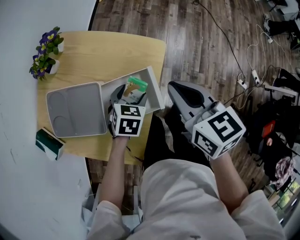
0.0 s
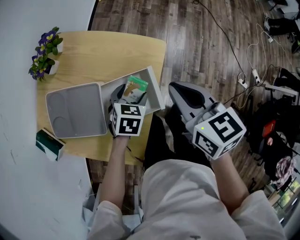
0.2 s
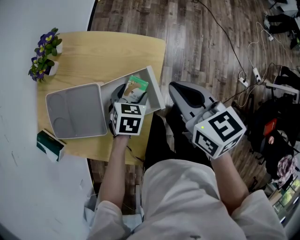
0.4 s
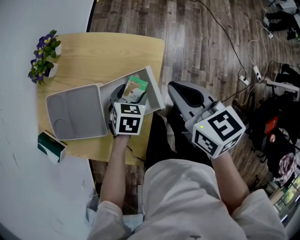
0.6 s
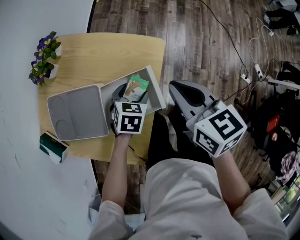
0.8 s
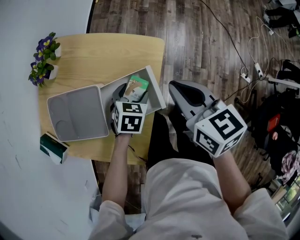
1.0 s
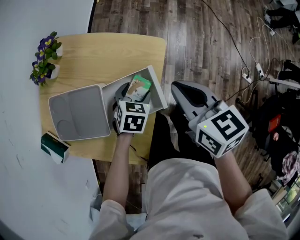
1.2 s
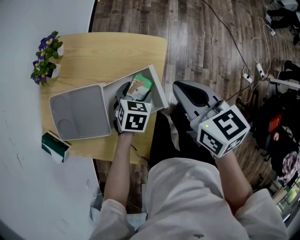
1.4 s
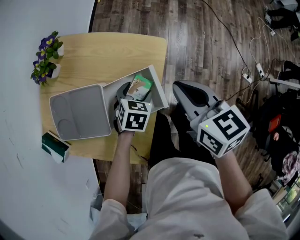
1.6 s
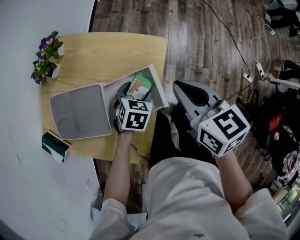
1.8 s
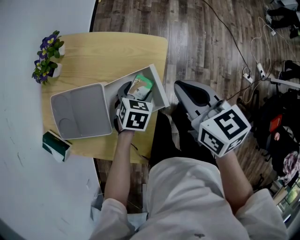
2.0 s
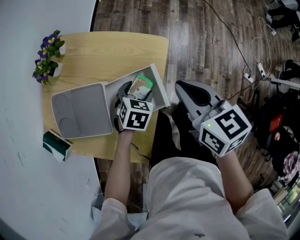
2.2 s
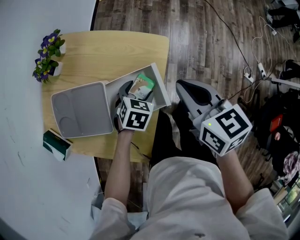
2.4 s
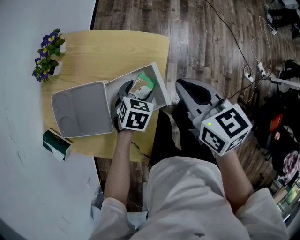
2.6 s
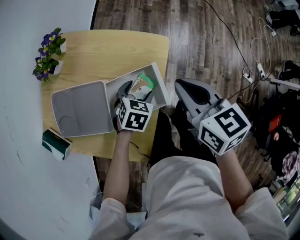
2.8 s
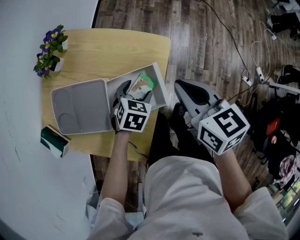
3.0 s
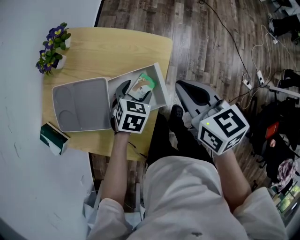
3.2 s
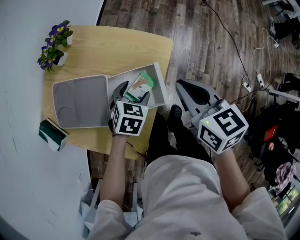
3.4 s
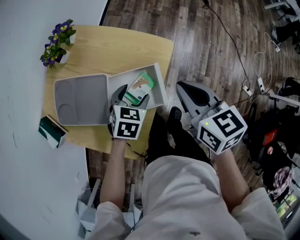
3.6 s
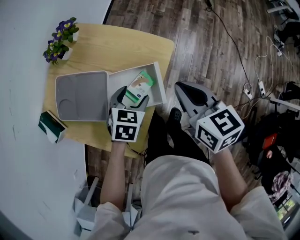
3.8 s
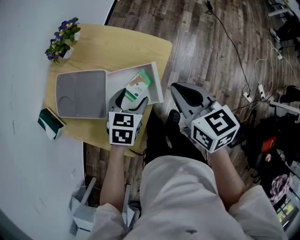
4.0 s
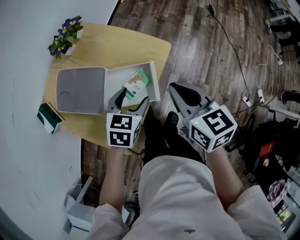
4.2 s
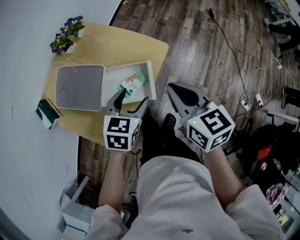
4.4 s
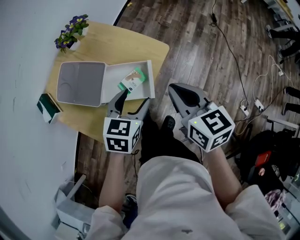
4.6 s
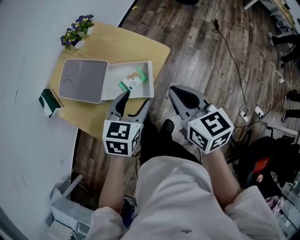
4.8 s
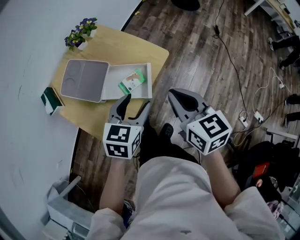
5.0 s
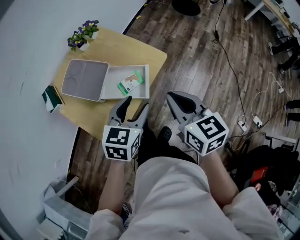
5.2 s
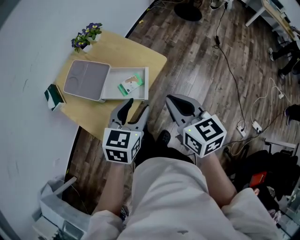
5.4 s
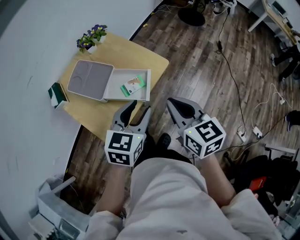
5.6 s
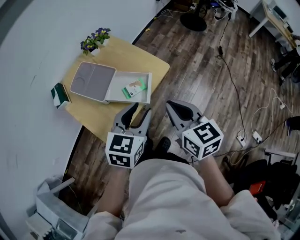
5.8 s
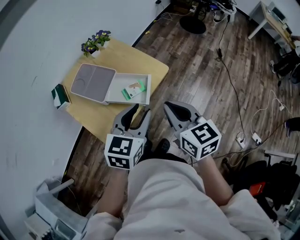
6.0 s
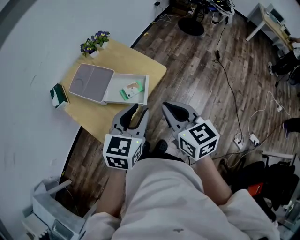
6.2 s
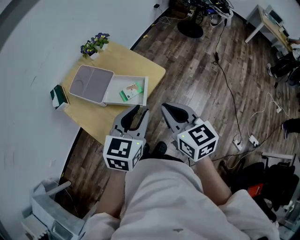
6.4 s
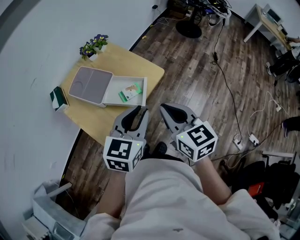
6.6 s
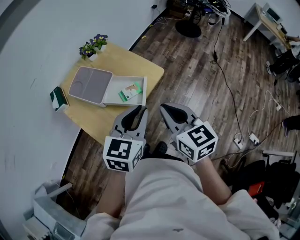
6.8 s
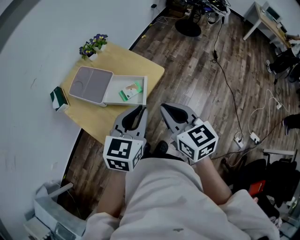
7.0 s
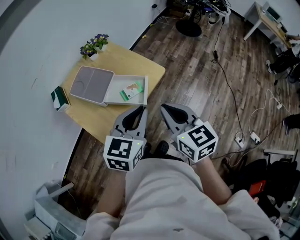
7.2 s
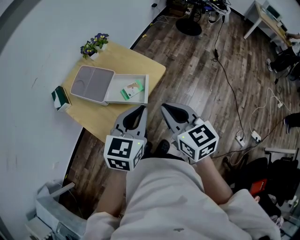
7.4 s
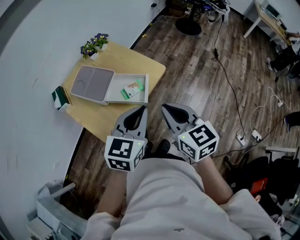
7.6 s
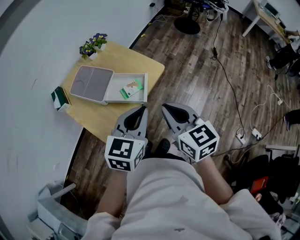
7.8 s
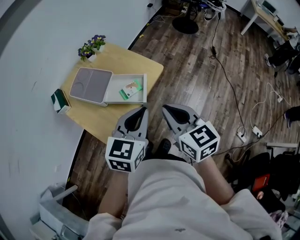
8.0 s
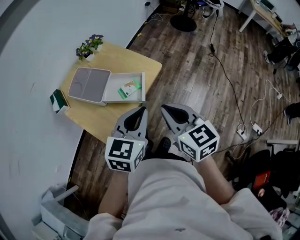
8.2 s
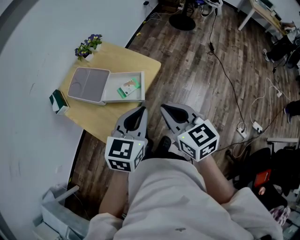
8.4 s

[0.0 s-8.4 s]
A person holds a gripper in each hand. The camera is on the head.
0.0 to 2.8 s: There are only small adjustments of the grippers.
2.8 to 4.2 s: The left gripper shifts roughly 10 cm upward, and swivels about 20 degrees.
4.2 to 5.6 s: The left gripper moves upward, backward and to the right, approximately 20 cm, rotates roughly 20 degrees, and closes up. Meanwhile the right gripper heads backward and upward, covering some 10 cm.
5.6 to 7.0 s: The left gripper travels upward by about 5 cm, and closes up.
7.0 to 8.4 s: The grippers make only small movements.

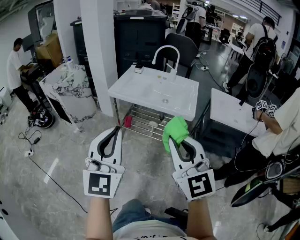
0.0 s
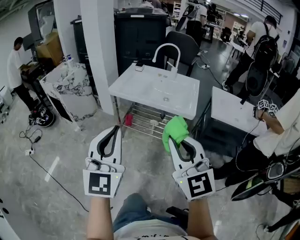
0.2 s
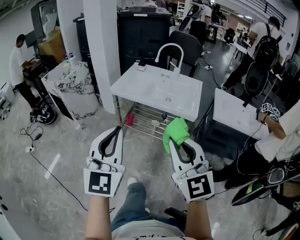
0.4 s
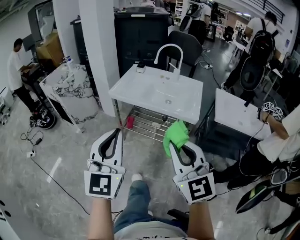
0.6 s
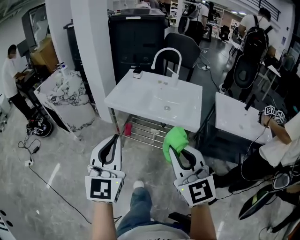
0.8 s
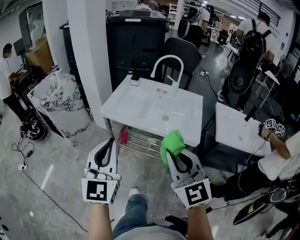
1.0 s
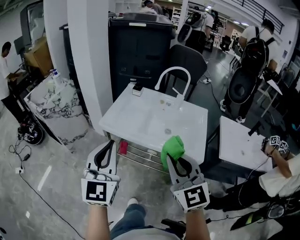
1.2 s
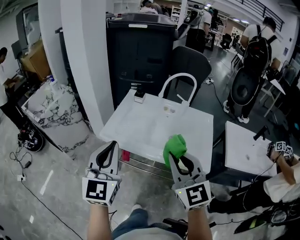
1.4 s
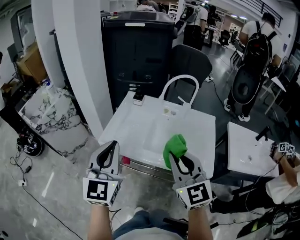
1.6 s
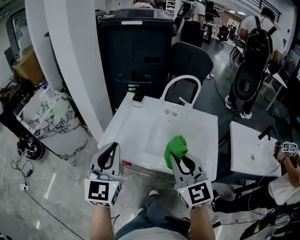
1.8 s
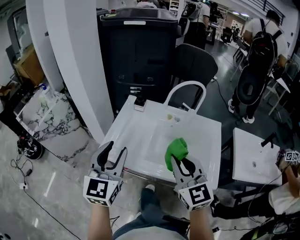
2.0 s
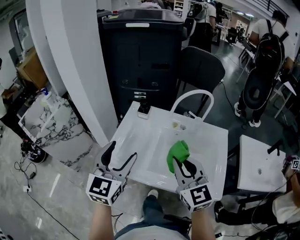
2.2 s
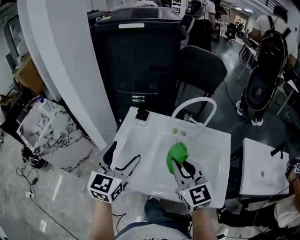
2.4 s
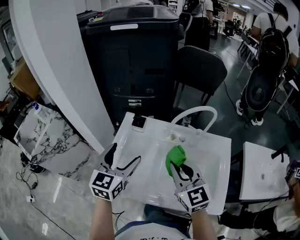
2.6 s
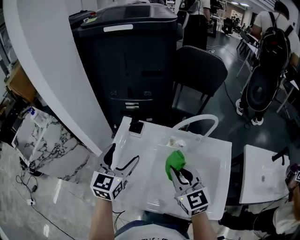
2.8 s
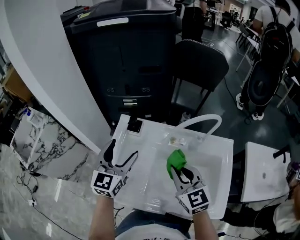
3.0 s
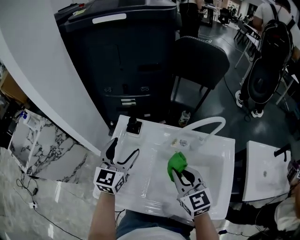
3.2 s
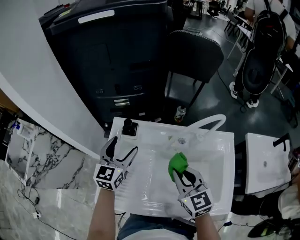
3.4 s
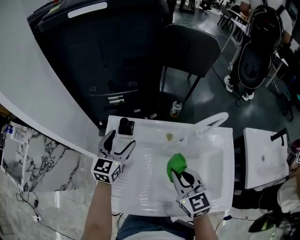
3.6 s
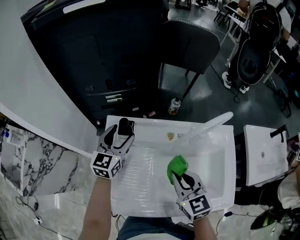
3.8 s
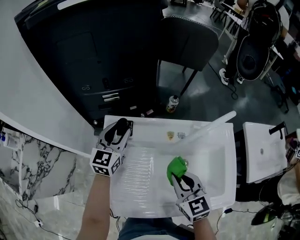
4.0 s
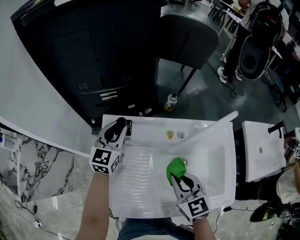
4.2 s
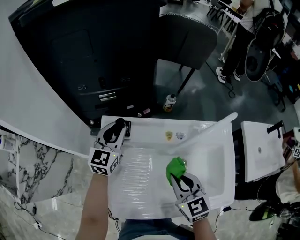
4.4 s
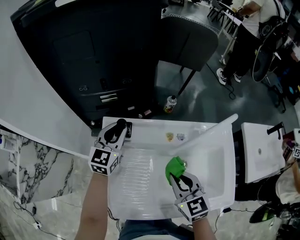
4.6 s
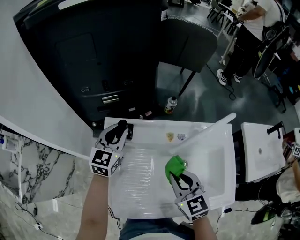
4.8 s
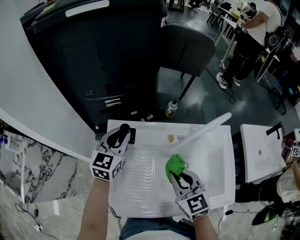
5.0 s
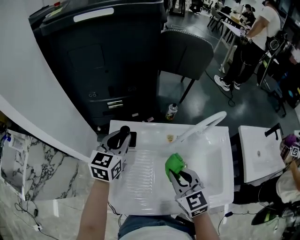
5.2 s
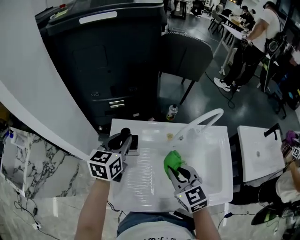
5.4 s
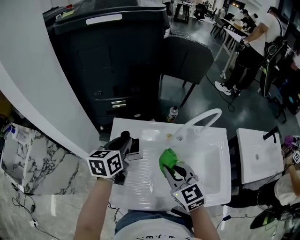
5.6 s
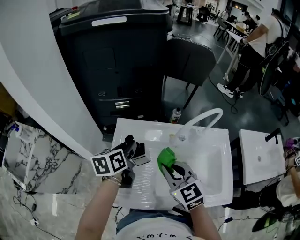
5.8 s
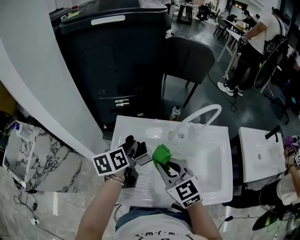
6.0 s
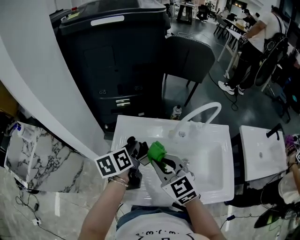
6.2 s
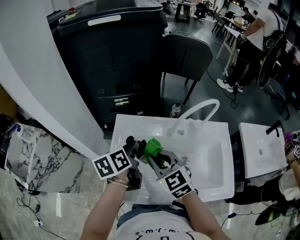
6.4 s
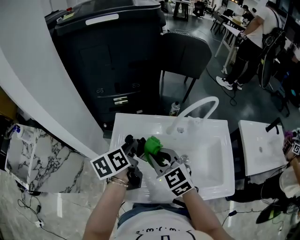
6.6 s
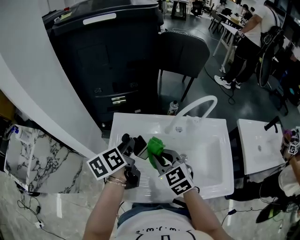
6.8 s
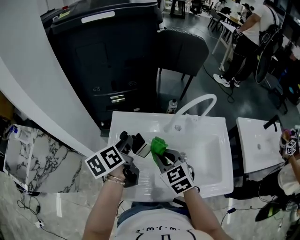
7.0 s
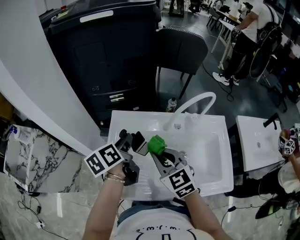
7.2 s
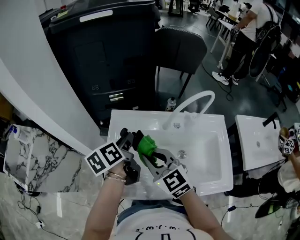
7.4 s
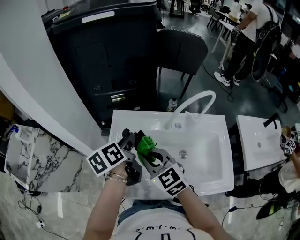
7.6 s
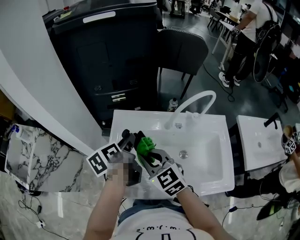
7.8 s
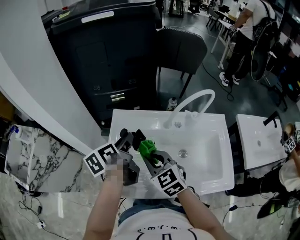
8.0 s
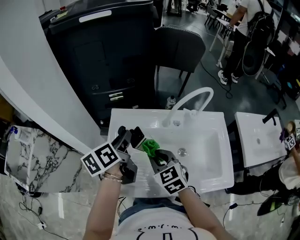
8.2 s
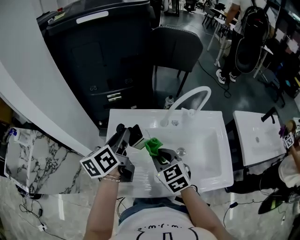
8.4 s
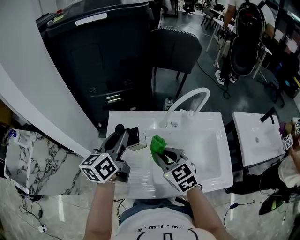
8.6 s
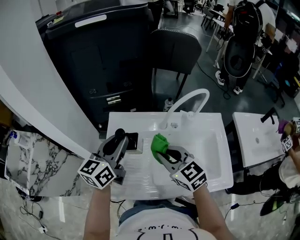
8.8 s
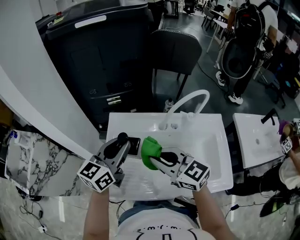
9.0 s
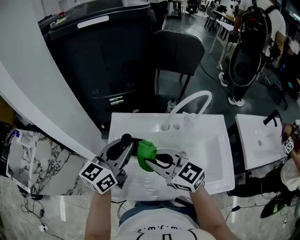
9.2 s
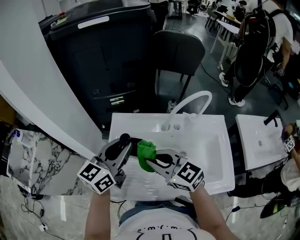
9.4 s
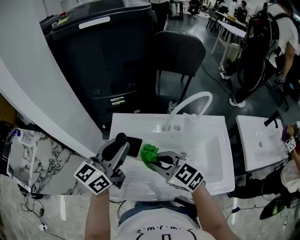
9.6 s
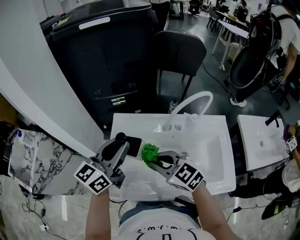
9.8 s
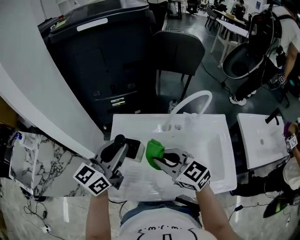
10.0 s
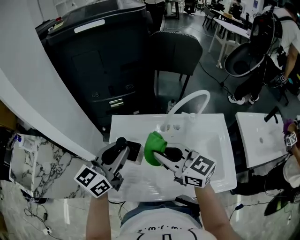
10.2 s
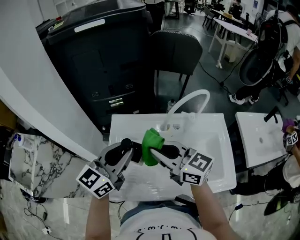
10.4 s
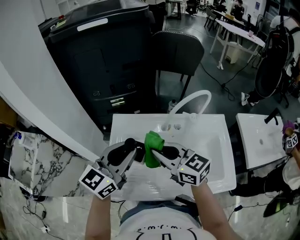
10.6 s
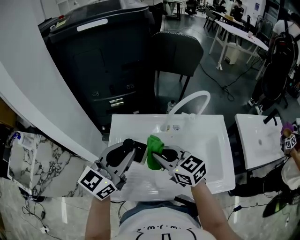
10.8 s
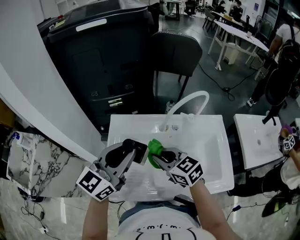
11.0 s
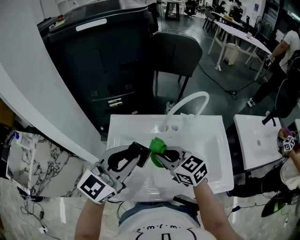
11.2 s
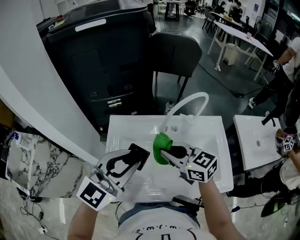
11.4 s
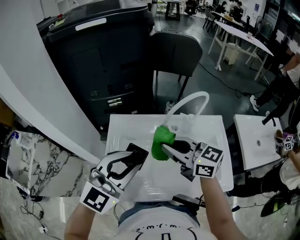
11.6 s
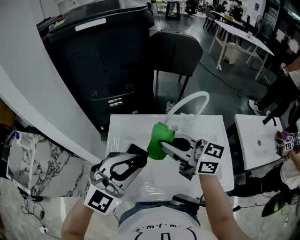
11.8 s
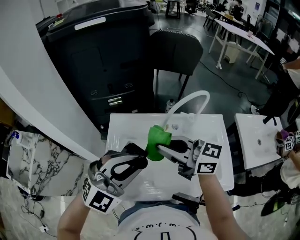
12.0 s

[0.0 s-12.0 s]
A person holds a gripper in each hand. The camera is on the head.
0.0 to 1.6 s: The two grippers travel together, forward, approximately 40 cm.
1.6 to 3.0 s: The right gripper shifts roughly 30 cm forward and downward. The left gripper heads forward, covering roughly 35 cm, and opens its fingers.
3.0 to 4.4 s: The left gripper shifts roughly 20 cm forward and downward, and closes, while the right gripper goes some 5 cm downward.
4.4 to 6.0 s: The left gripper goes some 10 cm backward, and twists some 50 degrees counterclockwise, seen from behind. Meanwhile the right gripper shifts about 10 cm to the left and upward.
6.0 to 7.6 s: The right gripper moves to the left, some 5 cm.
7.6 to 9.0 s: The right gripper changes place by approximately 5 cm, while the left gripper goes some 5 cm upward, and rolls clockwise, seen from behind, by roughly 40 degrees.
9.0 to 10.4 s: The grippers stay close to where they were, moving slightly.
10.4 to 12.0 s: The left gripper moves backward, about 5 cm, and rotates around the line of its fingers by roughly 50 degrees, clockwise from behind, while the right gripper goes downward and returns, roughly 10 cm each way.

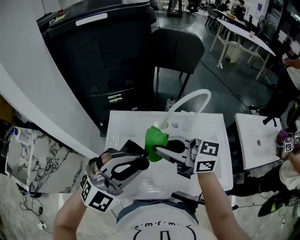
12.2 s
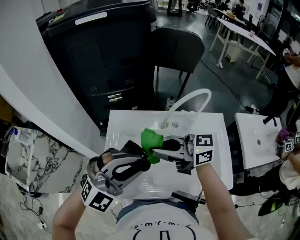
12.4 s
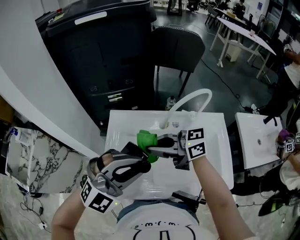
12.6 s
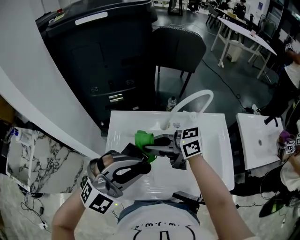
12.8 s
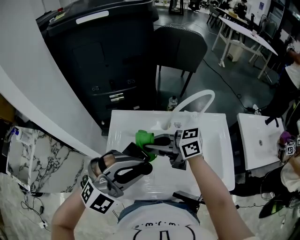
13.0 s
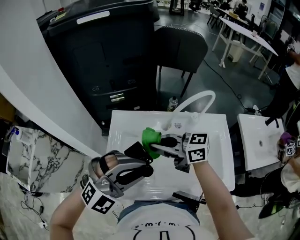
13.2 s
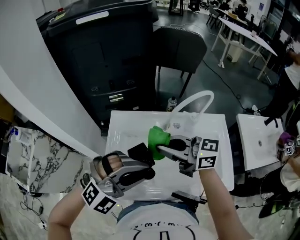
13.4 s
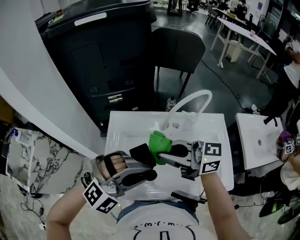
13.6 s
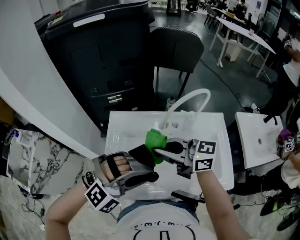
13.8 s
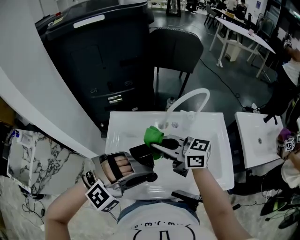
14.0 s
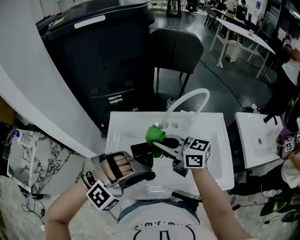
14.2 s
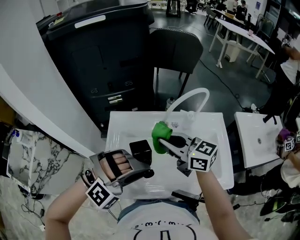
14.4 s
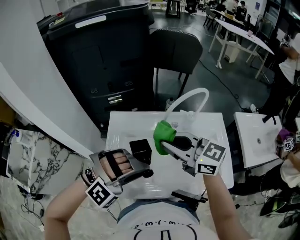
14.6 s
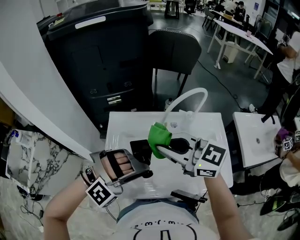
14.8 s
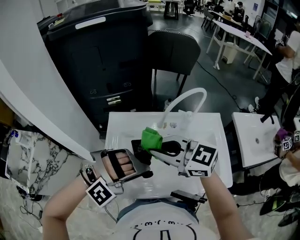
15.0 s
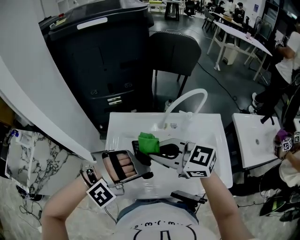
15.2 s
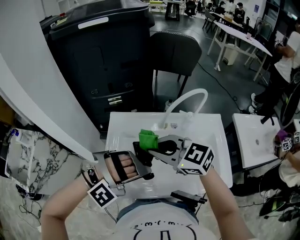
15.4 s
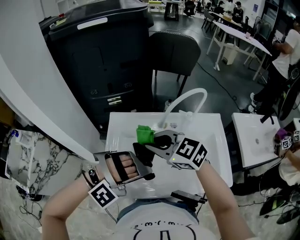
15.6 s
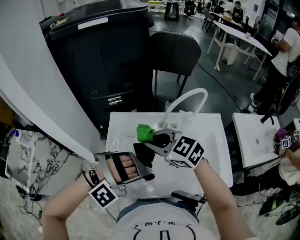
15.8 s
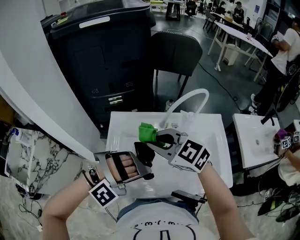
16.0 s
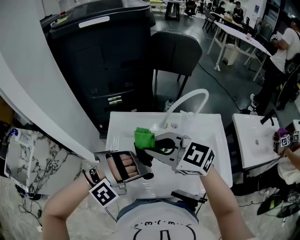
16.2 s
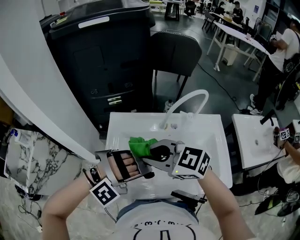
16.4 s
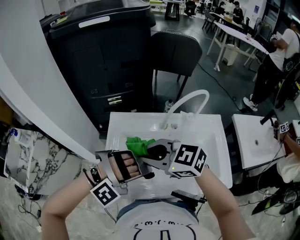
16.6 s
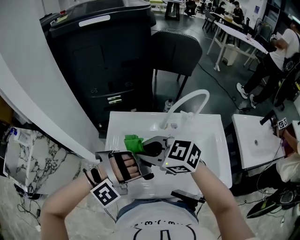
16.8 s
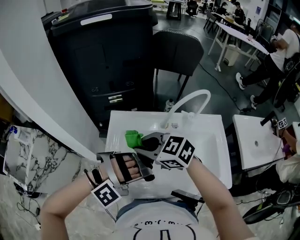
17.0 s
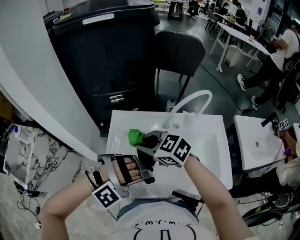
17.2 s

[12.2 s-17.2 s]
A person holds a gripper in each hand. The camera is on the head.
12.2 to 13.8 s: The left gripper shifts by roughly 5 cm, and changes its angle by roughly 30 degrees.
13.8 to 15.6 s: The left gripper changes its angle by some 30 degrees, while the right gripper reaches some 5 cm upward, then returns, and swivels roughly 40 degrees.
15.6 to 17.2 s: The right gripper moves about 5 cm.
